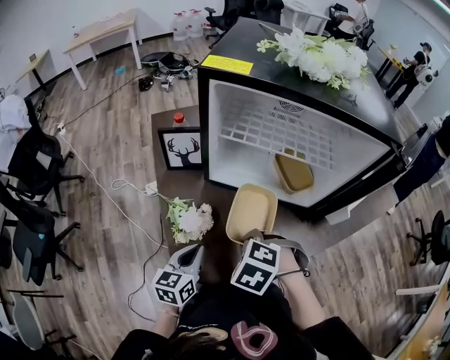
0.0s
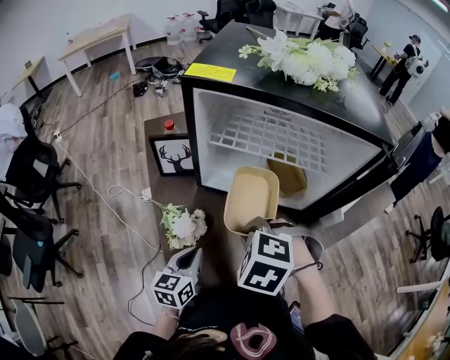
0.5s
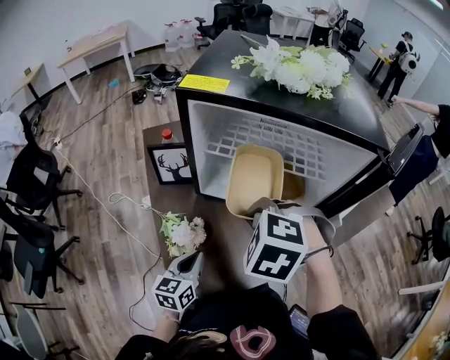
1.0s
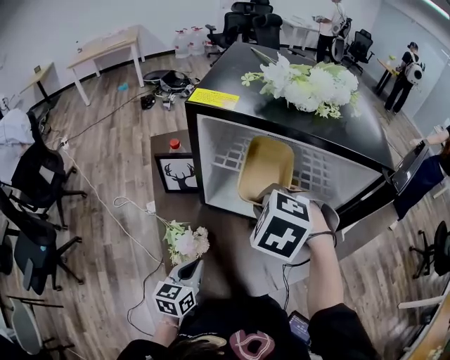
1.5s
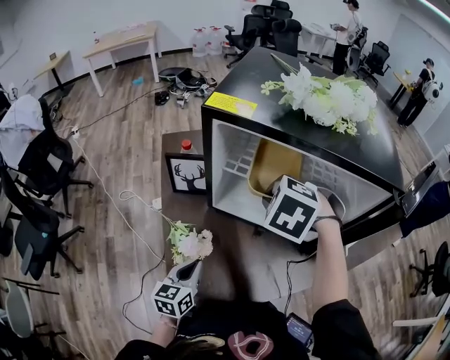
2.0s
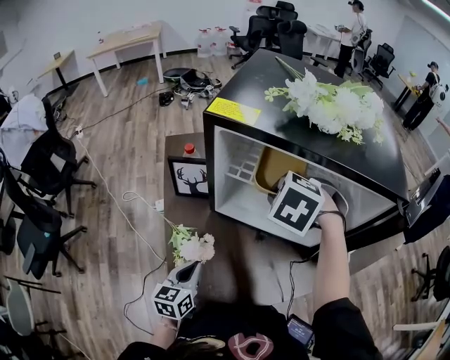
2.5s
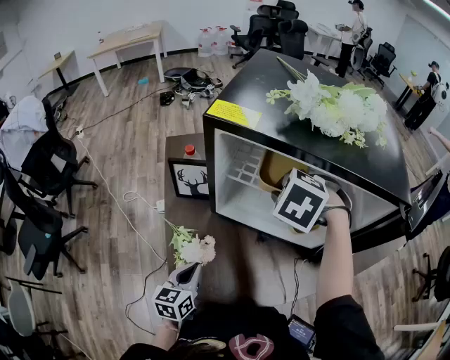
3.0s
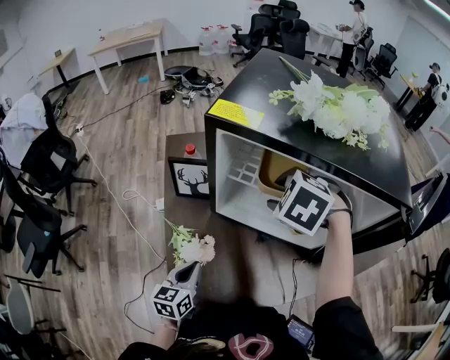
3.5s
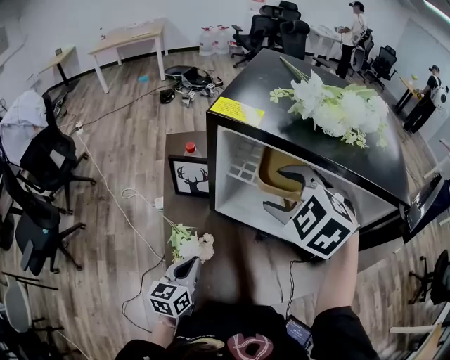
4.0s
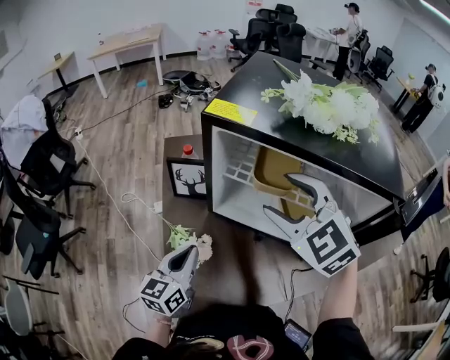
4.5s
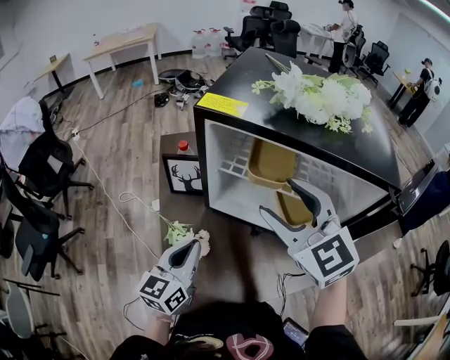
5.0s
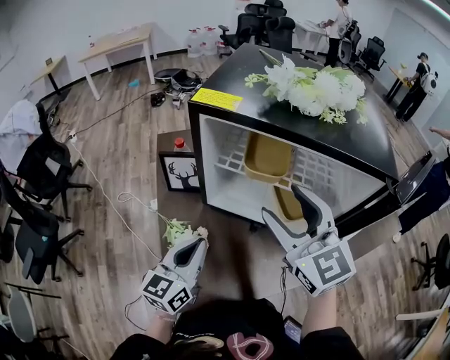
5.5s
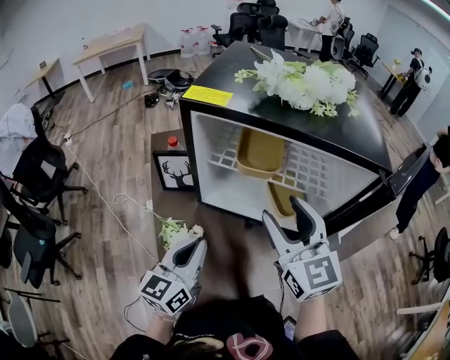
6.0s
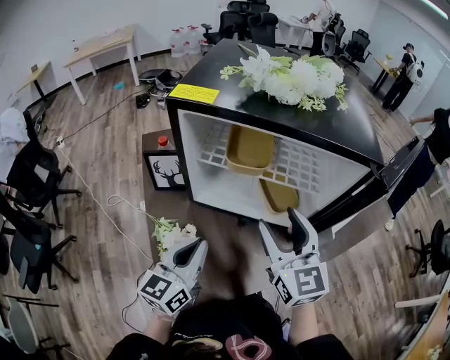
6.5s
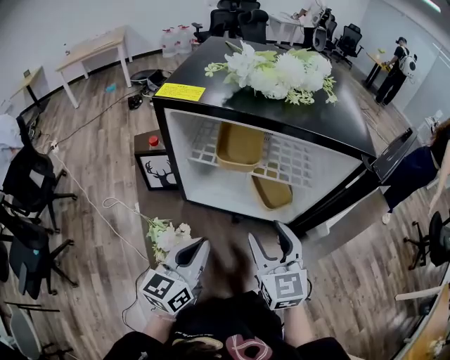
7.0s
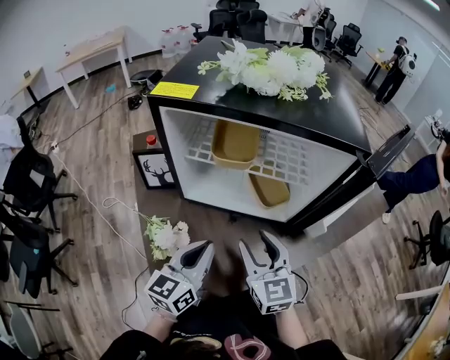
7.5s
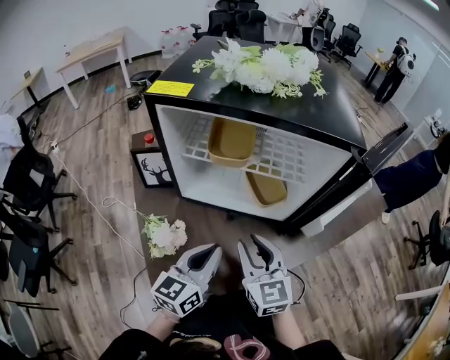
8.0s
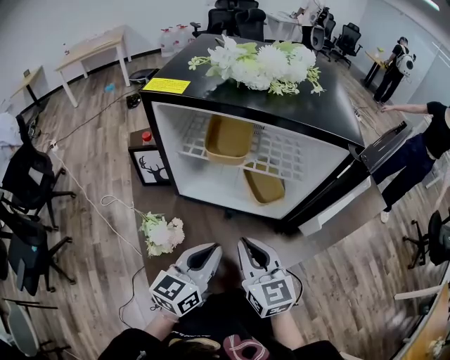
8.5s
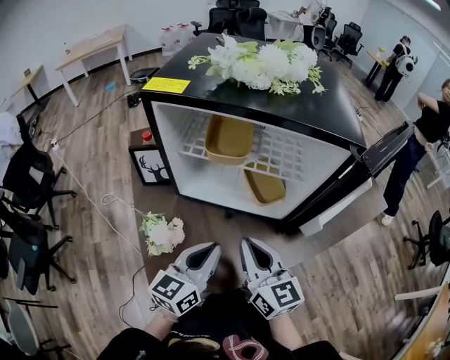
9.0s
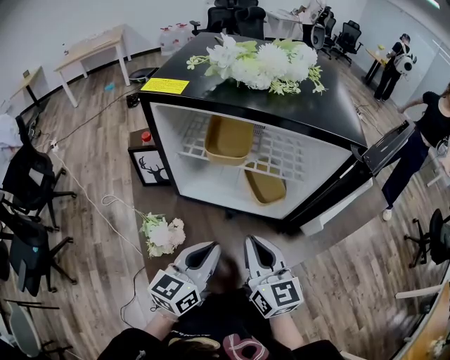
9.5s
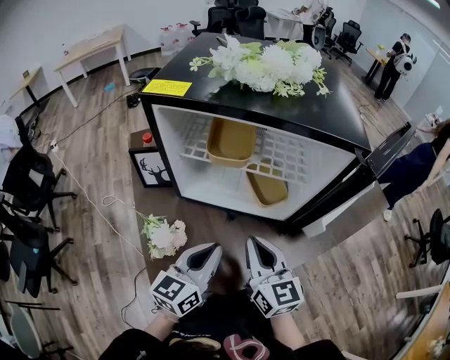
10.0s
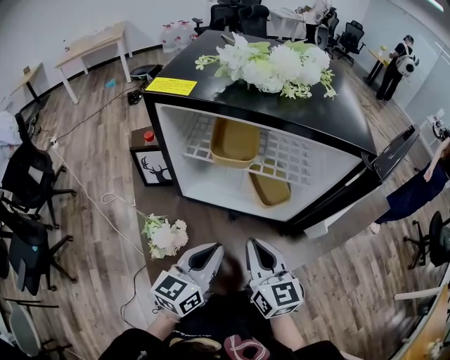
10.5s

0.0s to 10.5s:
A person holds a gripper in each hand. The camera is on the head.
0.0s to 2.0s: The right gripper travels forward and upward by approximately 25 cm.
2.0s to 4.0s: The right gripper travels upward by roughly 5 cm, turns by some 20 degrees, and opens.
4.0s to 6.5s: The right gripper heads backward and to the right, covering some 15 cm, and angles its fingers upward, by roughly 40 degrees, while the left gripper moves upward and to the right, some 15 cm, and rotates roughly 20 degrees.
6.5s to 8.5s: The left gripper is displaced to the right by some 10 cm, while the right gripper heads downward and backward, covering roughly 10 cm, and closes its fingers.
8.5s to 10.5s: The grippers make only small movements.

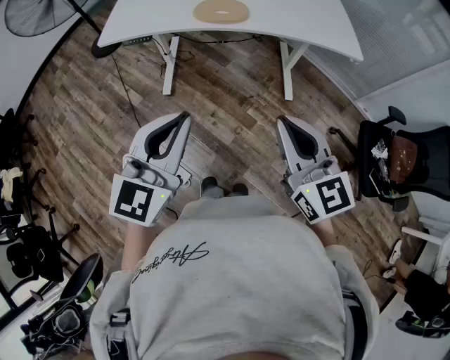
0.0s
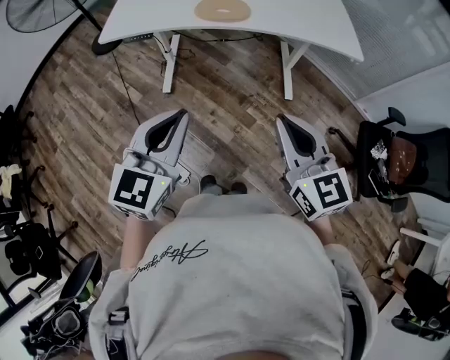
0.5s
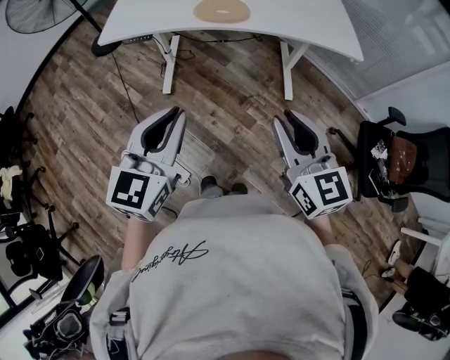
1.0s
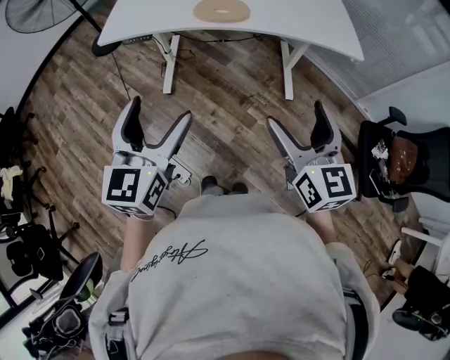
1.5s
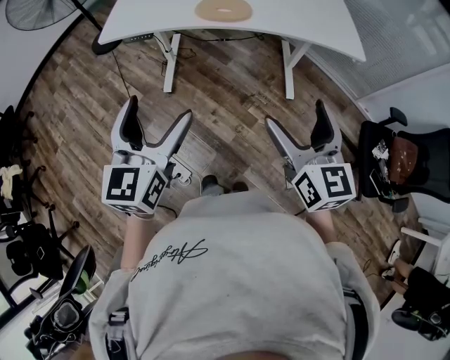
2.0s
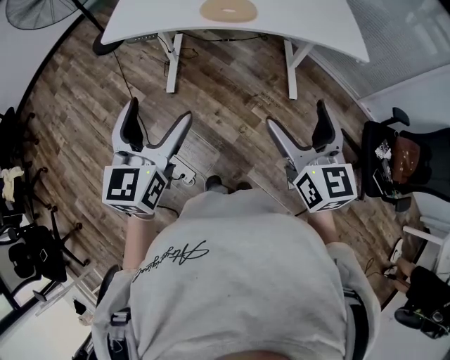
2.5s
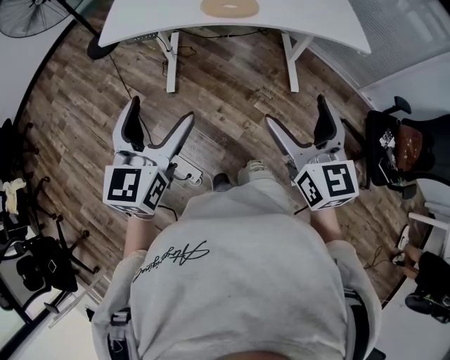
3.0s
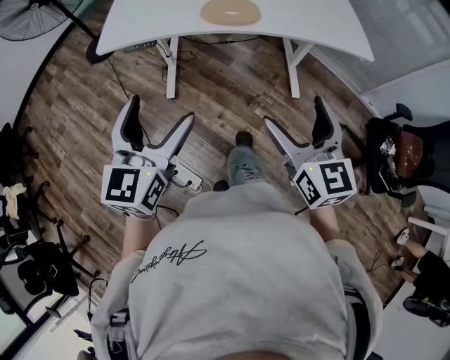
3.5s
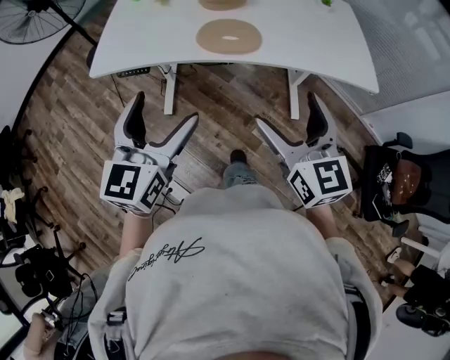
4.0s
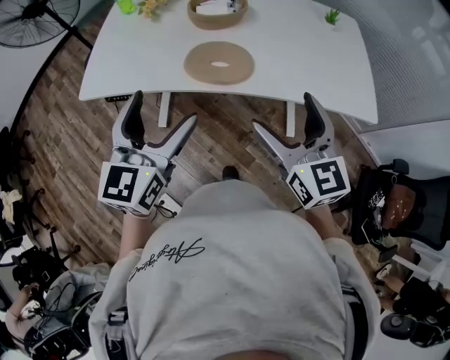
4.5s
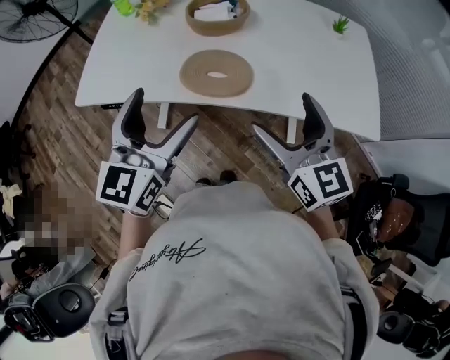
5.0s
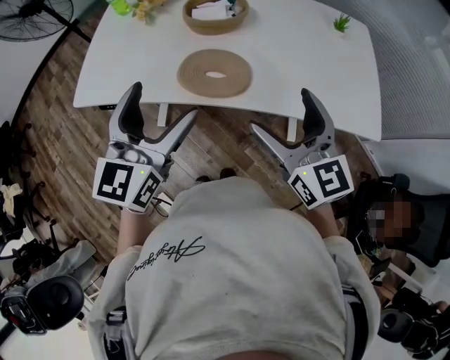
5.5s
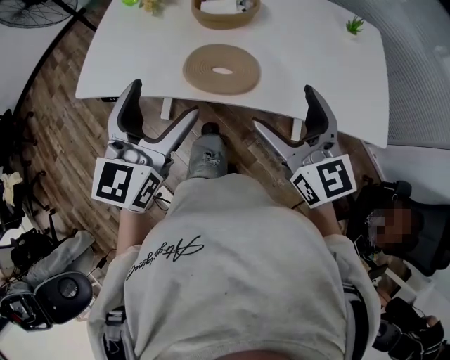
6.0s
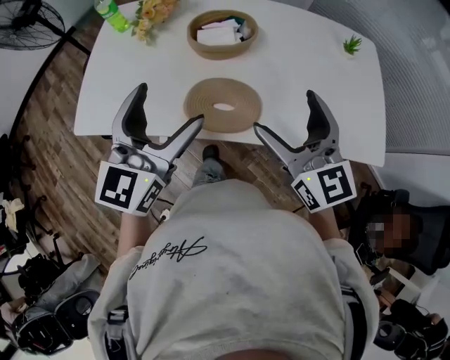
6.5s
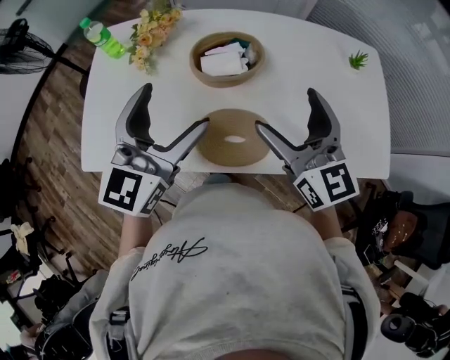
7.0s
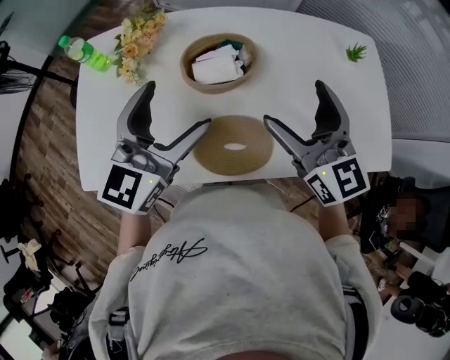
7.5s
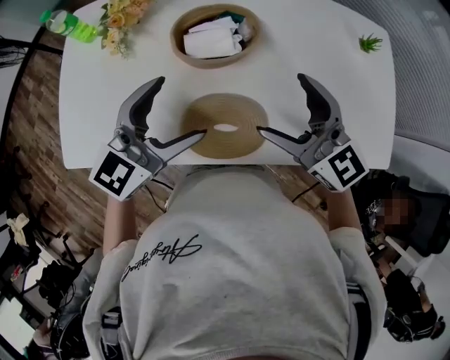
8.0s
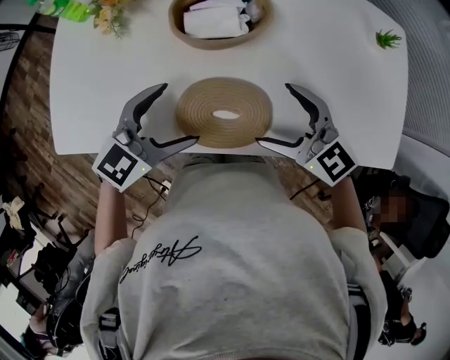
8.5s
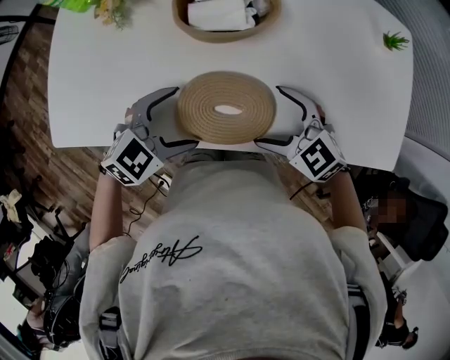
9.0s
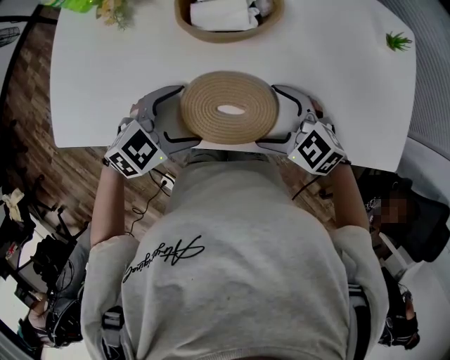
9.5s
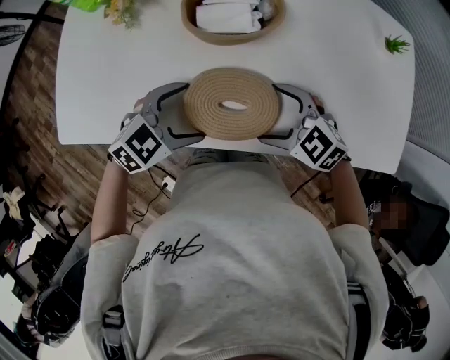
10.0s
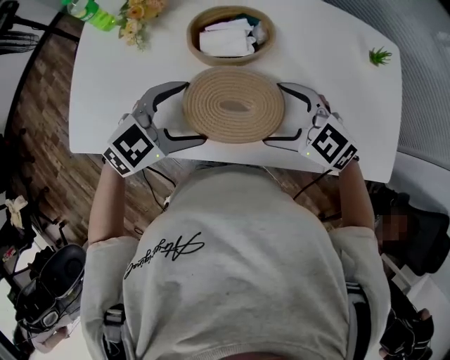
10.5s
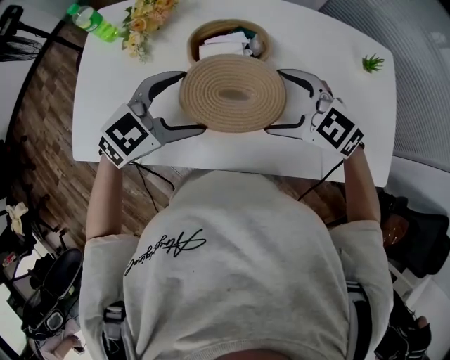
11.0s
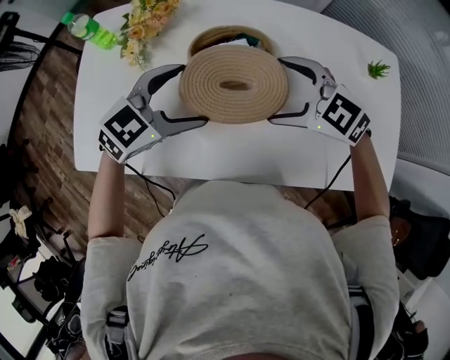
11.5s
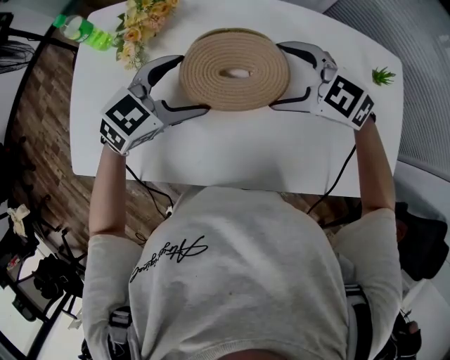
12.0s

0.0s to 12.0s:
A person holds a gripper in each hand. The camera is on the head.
0.0s to 2.0s: The right gripper opens up. Meanwhile the left gripper goes some 5 cm to the left, and opens its fingers.
2.0s to 4.0s: Both grippers travel together forward, some 20 cm.
4.0s to 6.0s: The left gripper shifts about 20 cm forward and to the right. The right gripper shifts roughly 20 cm forward.
6.0s to 8.0s: Both grippers move forward, about 20 cm. The left gripper rotates about 30 degrees.
8.0s to 10.0s: Both grippers travel together downward, some 15 cm. The right gripper angles its fingers downward, by some 30 degrees, while the left gripper points its fingers roughly 30 degrees further downward.
10.0s to 12.0s: The right gripper ends up some 20 cm from where it was. Meanwhile the left gripper shifts by about 20 cm.

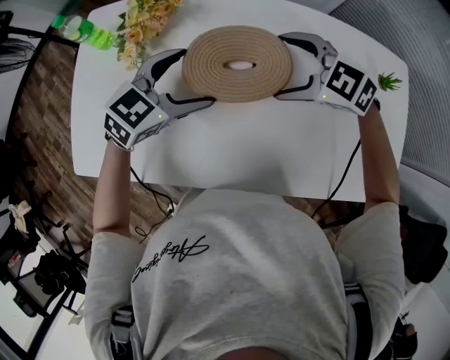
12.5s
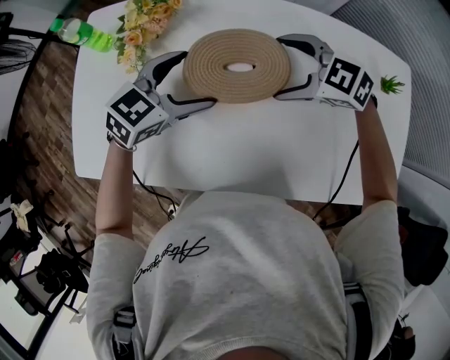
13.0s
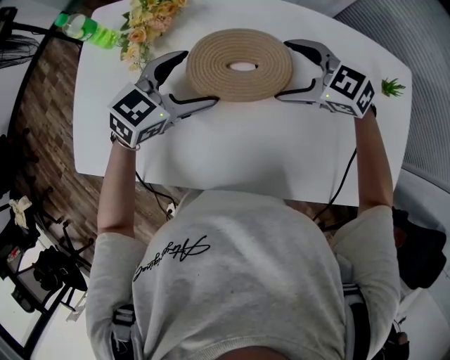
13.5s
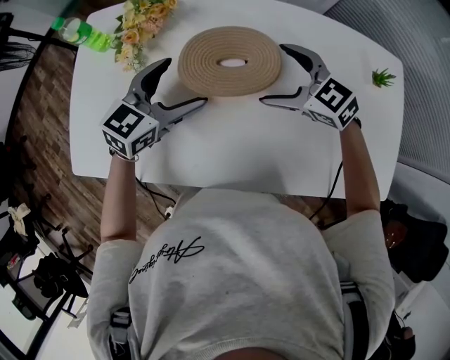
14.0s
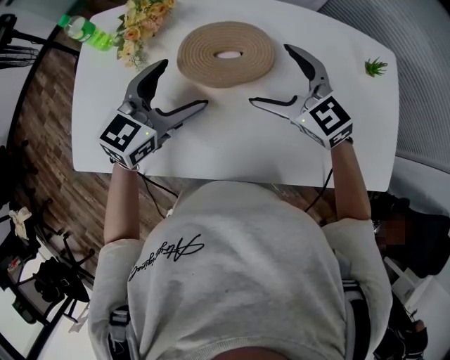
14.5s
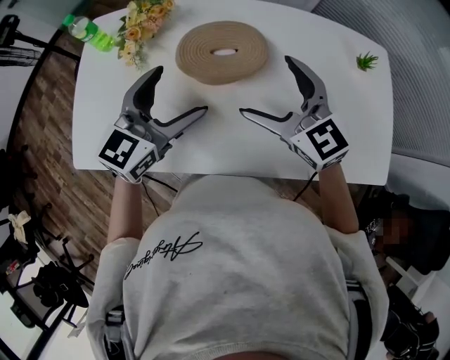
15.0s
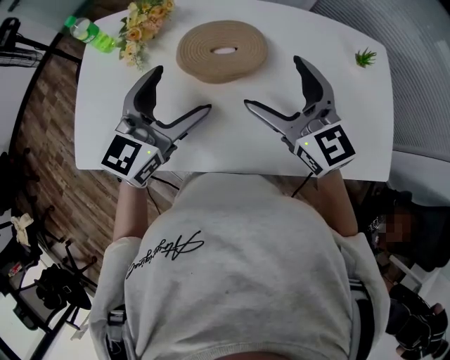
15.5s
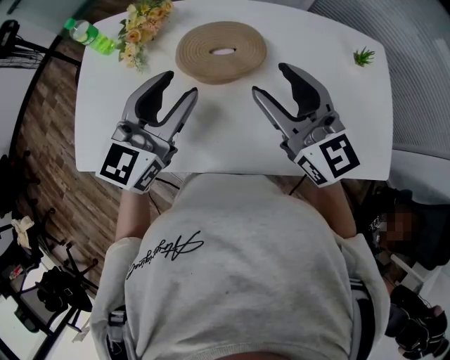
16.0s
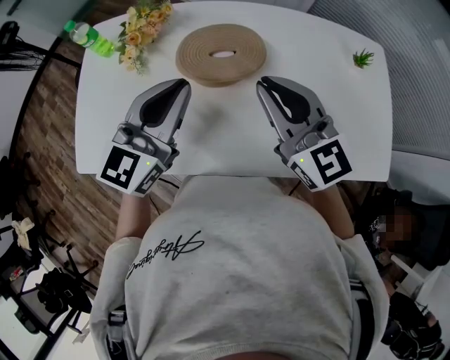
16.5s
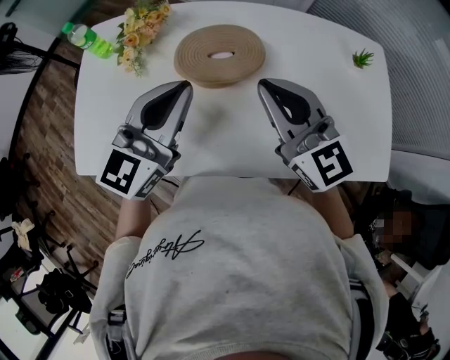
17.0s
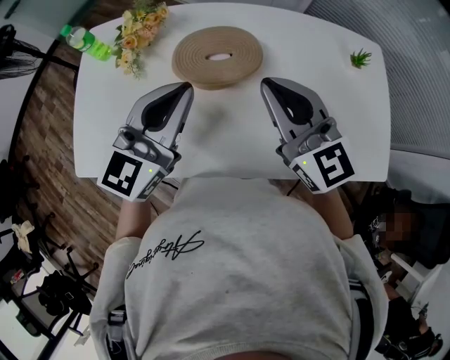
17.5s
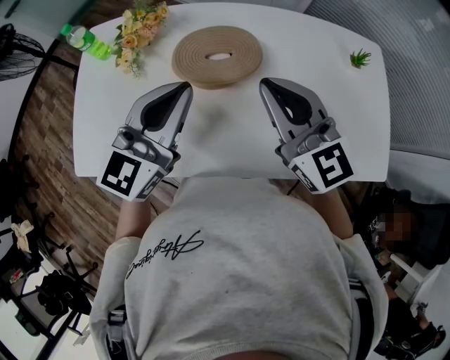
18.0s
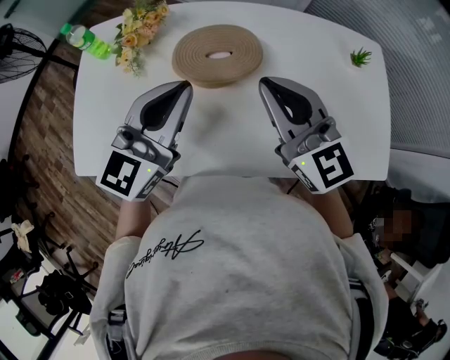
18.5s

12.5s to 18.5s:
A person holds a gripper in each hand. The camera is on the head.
12.5s to 14.5s: The right gripper ends up about 5 cm from where it was, and swivels about 30 degrees, while the left gripper changes place by roughly 5 cm.
14.5s to 16.5s: The left gripper heads upward, covering approximately 10 cm, and closes its fingers, while the right gripper moves upward and backward, some 10 cm, swivels some 30 degrees, and closes.
16.5s to 18.5s: The grippers move only a little.
